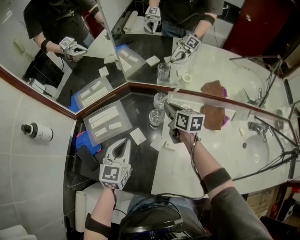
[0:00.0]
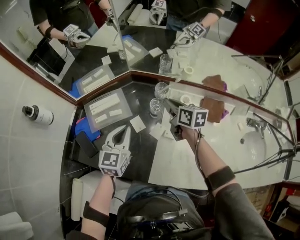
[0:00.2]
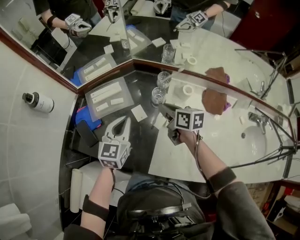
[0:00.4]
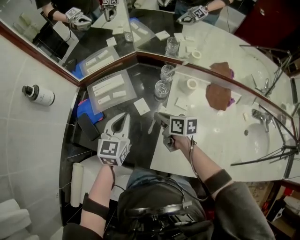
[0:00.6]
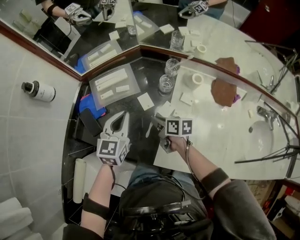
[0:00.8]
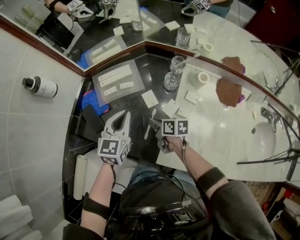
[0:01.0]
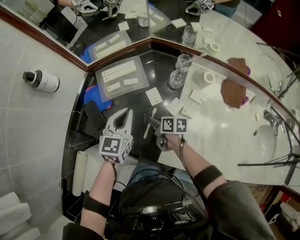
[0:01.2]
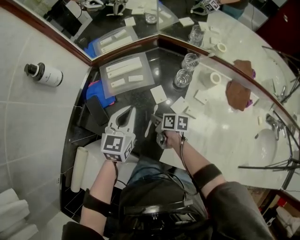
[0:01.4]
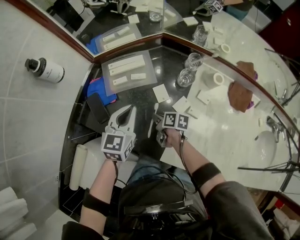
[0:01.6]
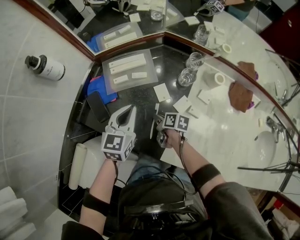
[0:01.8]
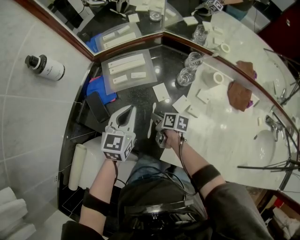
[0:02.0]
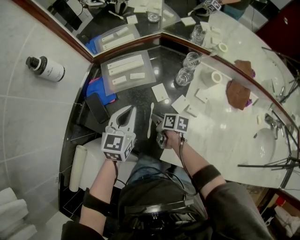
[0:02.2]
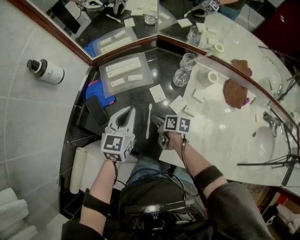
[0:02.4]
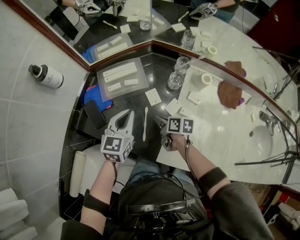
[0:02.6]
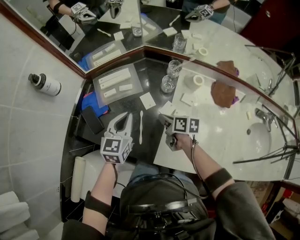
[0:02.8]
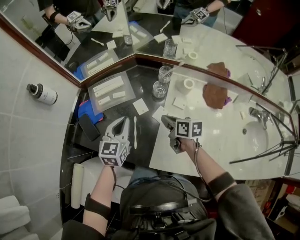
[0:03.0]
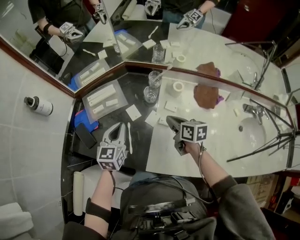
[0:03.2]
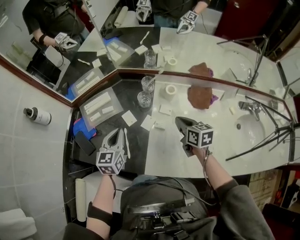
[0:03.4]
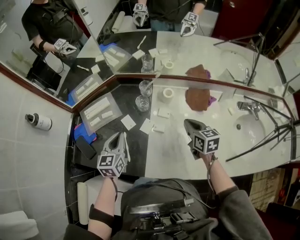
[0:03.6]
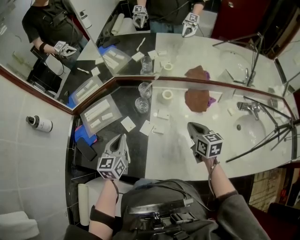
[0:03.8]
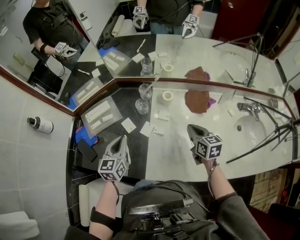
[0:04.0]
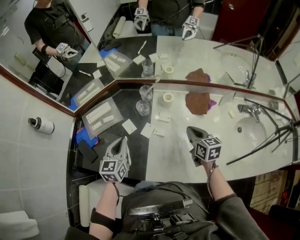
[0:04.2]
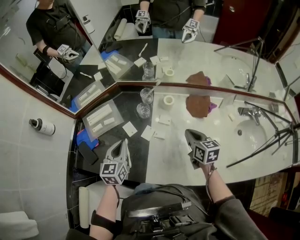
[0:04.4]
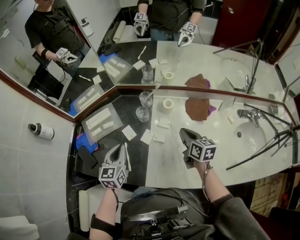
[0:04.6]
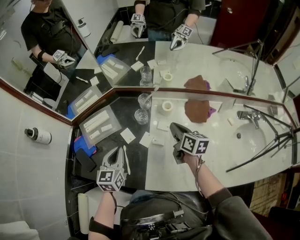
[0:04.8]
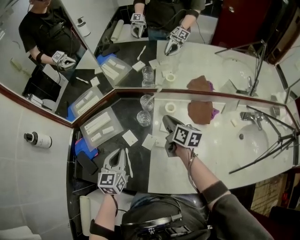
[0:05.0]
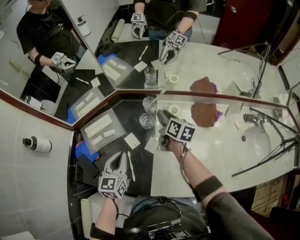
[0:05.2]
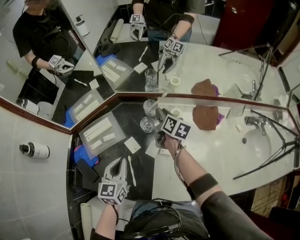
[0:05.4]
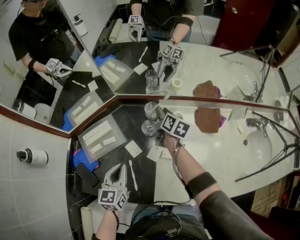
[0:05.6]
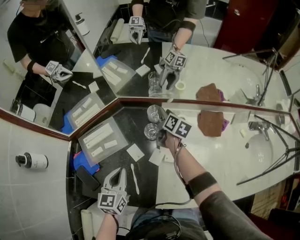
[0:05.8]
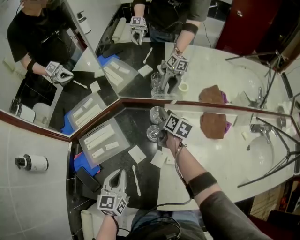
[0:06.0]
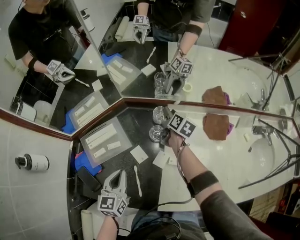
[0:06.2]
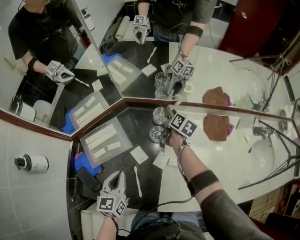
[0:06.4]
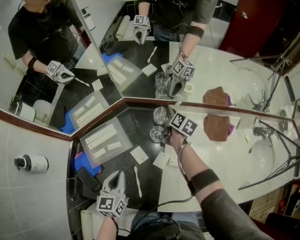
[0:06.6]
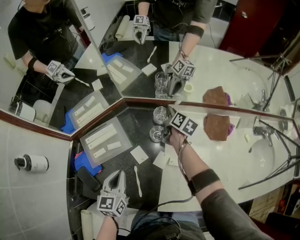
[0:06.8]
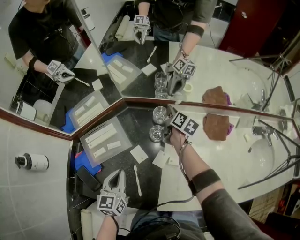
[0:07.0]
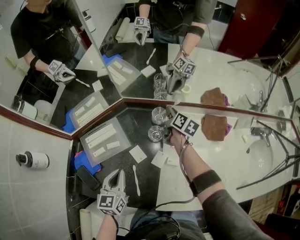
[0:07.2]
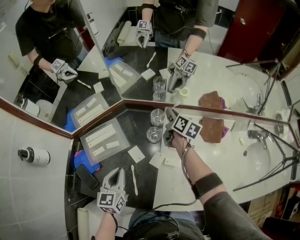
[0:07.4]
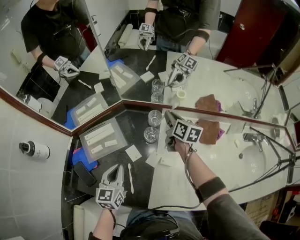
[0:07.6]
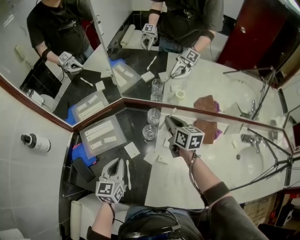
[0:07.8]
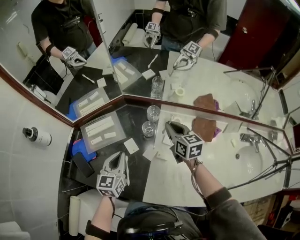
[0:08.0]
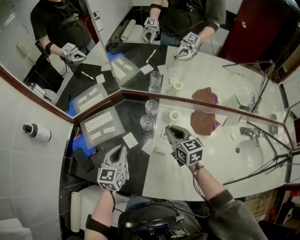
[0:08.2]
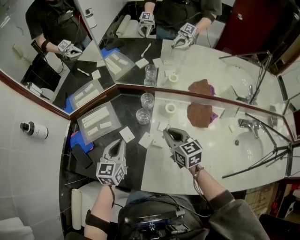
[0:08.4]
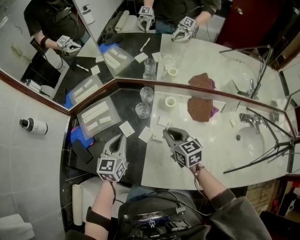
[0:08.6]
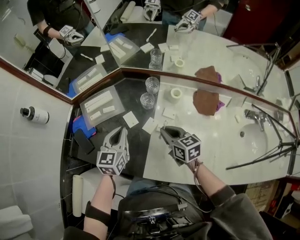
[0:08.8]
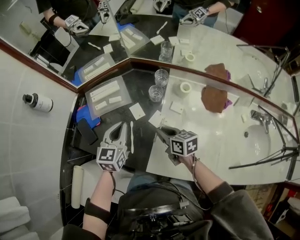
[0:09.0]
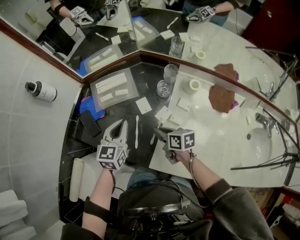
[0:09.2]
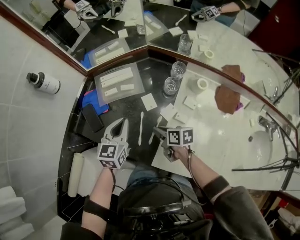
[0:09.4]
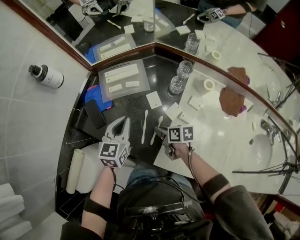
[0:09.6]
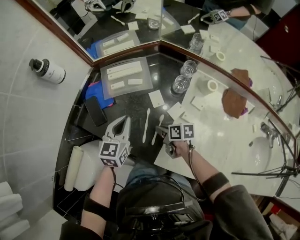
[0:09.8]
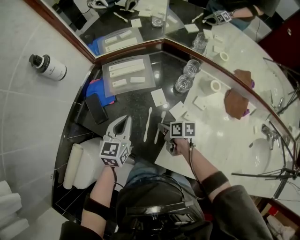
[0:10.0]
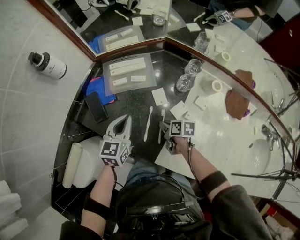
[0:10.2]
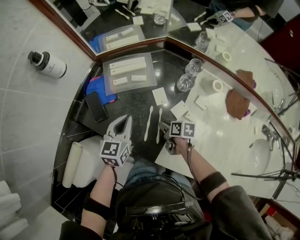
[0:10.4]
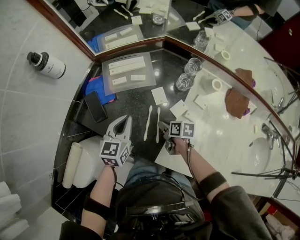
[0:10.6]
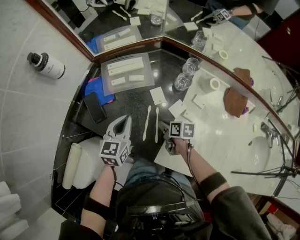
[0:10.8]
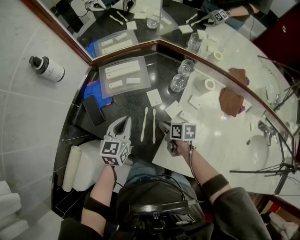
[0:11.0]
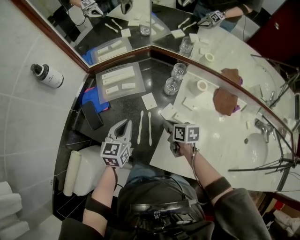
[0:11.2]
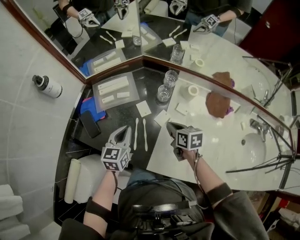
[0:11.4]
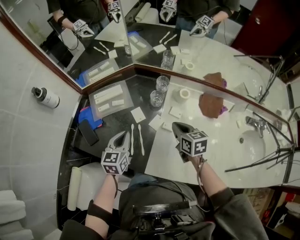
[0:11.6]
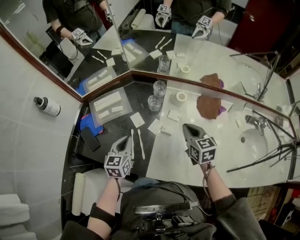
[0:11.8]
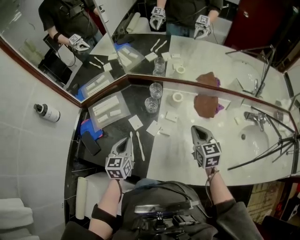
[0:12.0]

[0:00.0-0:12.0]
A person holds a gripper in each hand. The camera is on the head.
0:00.0 to 0:01.6: The left gripper goes about 10 cm to the left. Meanwhile the right gripper goes about 35 cm to the left, downward and backward, and turns by some 40 degrees.
0:01.6 to 0:03.0: The left gripper moves to the right, approximately 5 cm. The right gripper shifts some 20 cm to the right and upward, swivels about 20 degrees, and opens, then closes once more.
0:03.0 to 0:04.4: The left gripper shifts approximately 5 cm to the right. The right gripper shifts roughly 20 cm to the right, and turns by roughly 30 degrees.
0:04.4 to 0:06.0: The left gripper shifts some 5 cm to the left; the right gripper heads forward and to the left, covering about 30 cm, turns by roughly 30 degrees, and opens its fingers.
0:06.0 to 0:07.6: The right gripper heads upward, covering about 10 cm, and closes.
0:07.6 to 0:09.0: The right gripper moves backward and to the left, approximately 30 cm, and turns by roughly 30 degrees.
0:09.0 to 0:10.4: The right gripper heads downward and to the left, covering roughly 15 cm, and turns by approximately 30 degrees, while the left gripper moves to the left and downward, about 10 cm.
0:10.4 to 0:12.0: The right gripper ends up approximately 35 cm from where it was, rotates roughly 60 degrees, and closes, while the left gripper shifts by about 10 cm.

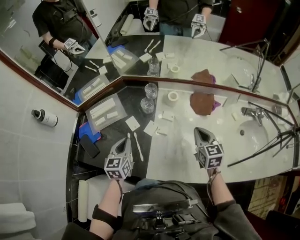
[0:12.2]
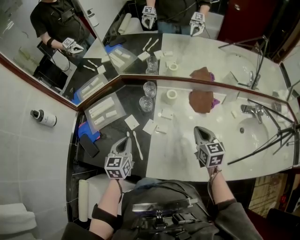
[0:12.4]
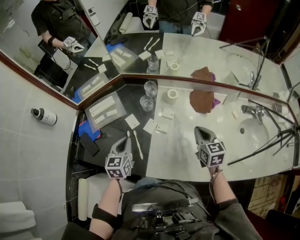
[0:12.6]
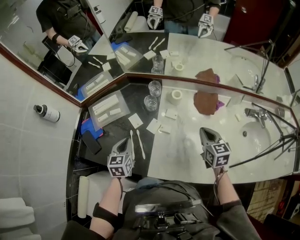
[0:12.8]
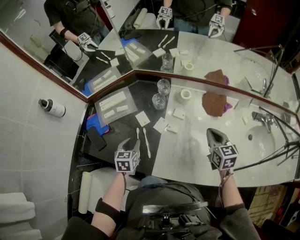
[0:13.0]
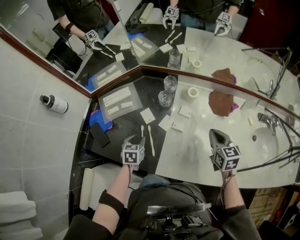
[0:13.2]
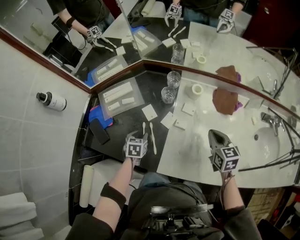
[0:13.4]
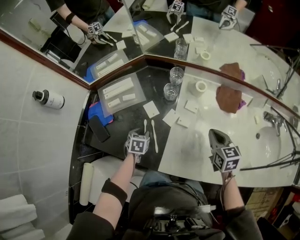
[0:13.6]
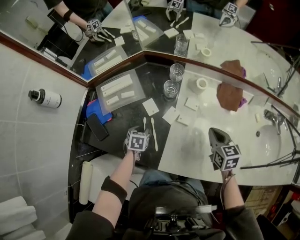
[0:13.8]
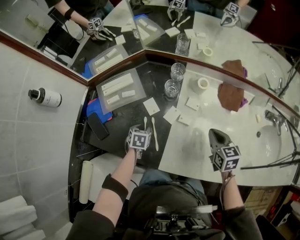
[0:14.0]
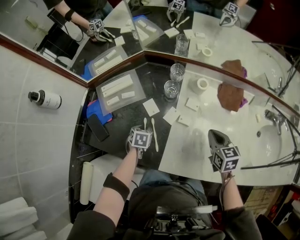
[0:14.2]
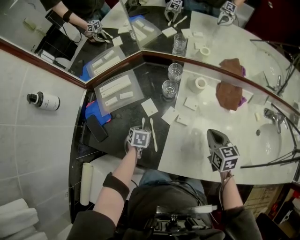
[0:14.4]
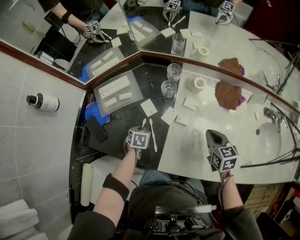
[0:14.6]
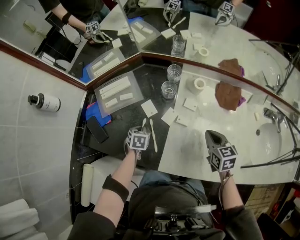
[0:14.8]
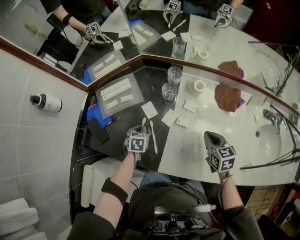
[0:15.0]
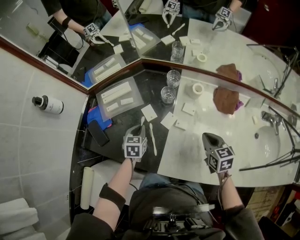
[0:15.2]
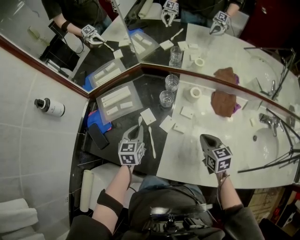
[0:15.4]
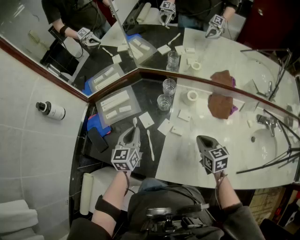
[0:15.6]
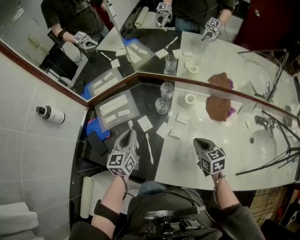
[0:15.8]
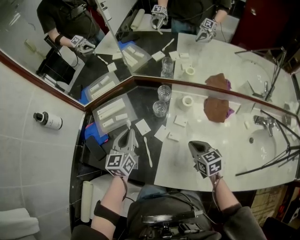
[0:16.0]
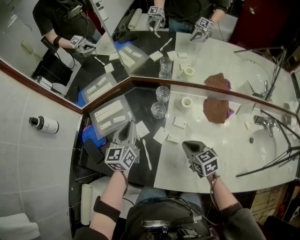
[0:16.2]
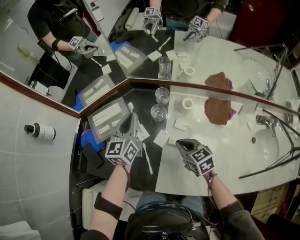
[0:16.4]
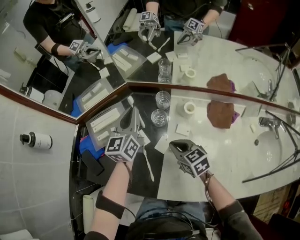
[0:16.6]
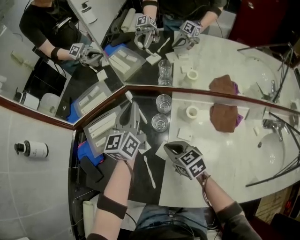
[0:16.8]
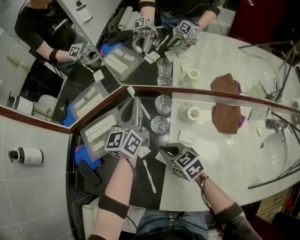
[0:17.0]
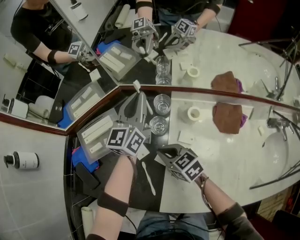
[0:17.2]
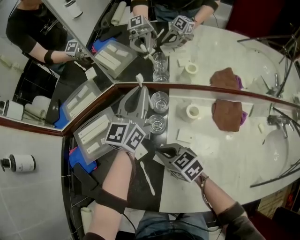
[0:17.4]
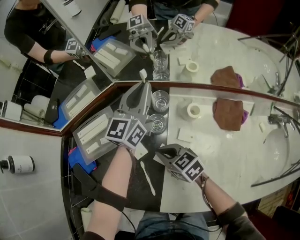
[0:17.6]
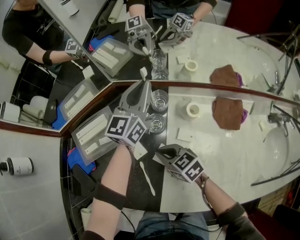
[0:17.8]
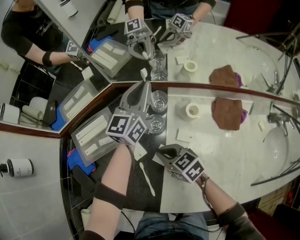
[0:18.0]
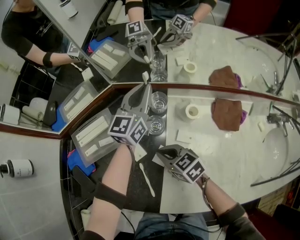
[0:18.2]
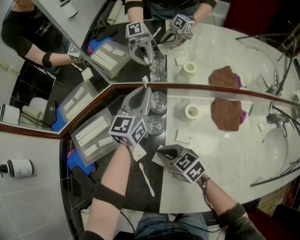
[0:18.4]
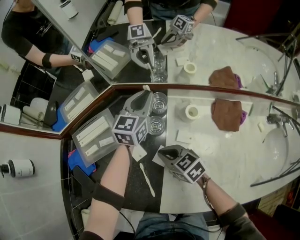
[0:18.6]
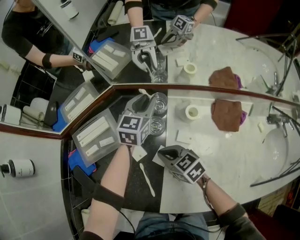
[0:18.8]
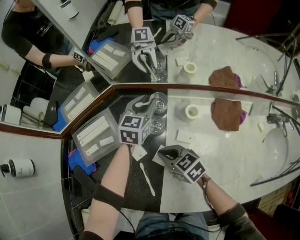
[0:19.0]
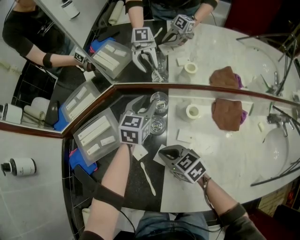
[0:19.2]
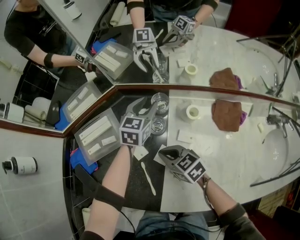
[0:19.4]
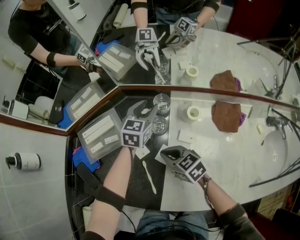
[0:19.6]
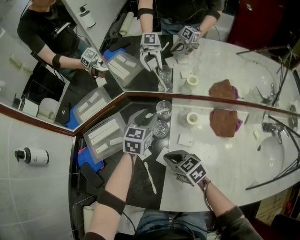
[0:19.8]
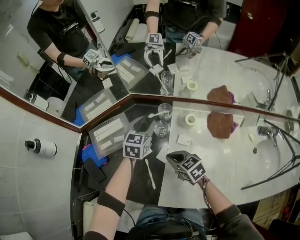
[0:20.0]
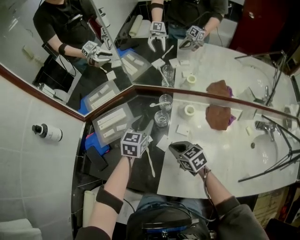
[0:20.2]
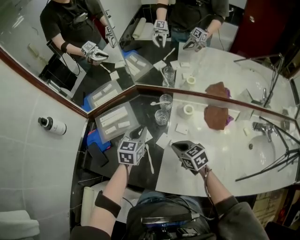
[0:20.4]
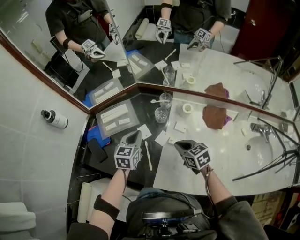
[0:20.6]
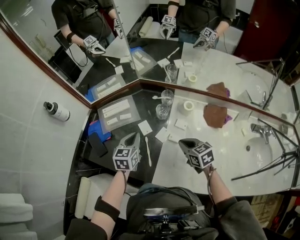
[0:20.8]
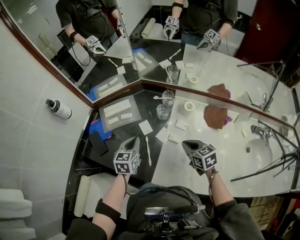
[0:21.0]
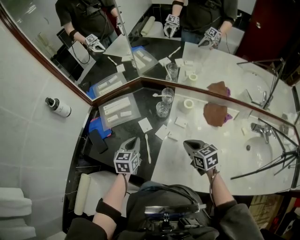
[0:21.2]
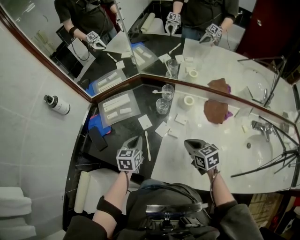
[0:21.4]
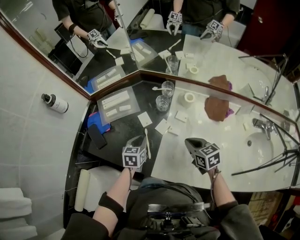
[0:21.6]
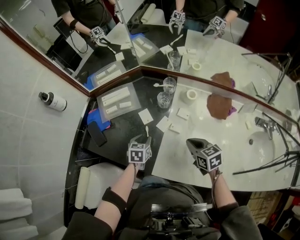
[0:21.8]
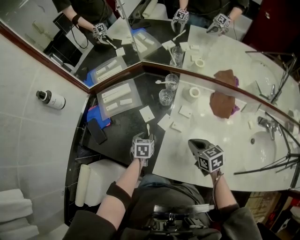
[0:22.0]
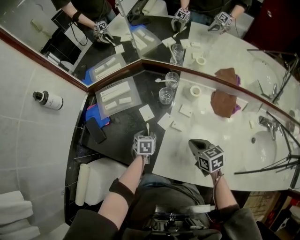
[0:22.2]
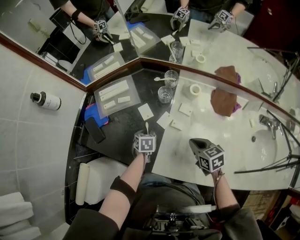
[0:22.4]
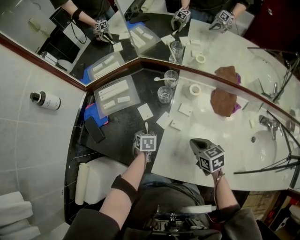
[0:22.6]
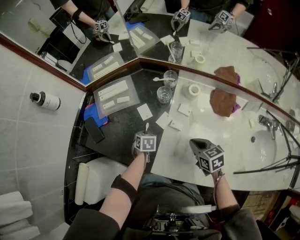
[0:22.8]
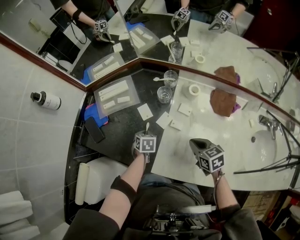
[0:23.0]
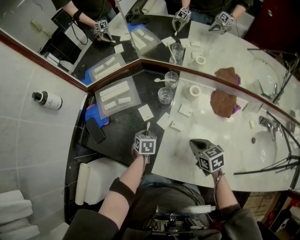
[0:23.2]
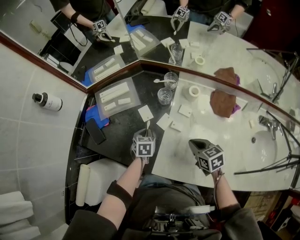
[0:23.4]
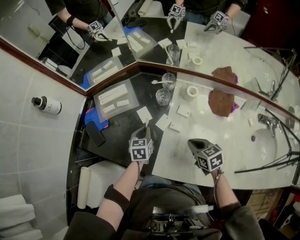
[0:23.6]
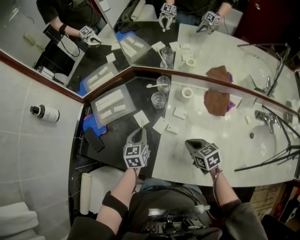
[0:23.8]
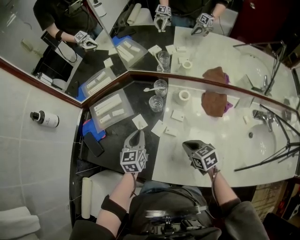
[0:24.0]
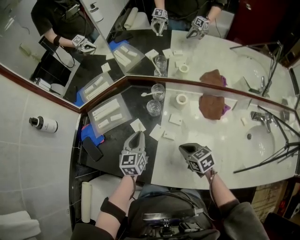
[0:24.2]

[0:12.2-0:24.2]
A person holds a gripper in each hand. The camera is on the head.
0:12.2 to 0:13.8: The right gripper moves downward, roughly 5 cm. The left gripper moves downward, approximately 20 cm, points its fingers approximately 40 degrees further downward, and opens up.
0:13.8 to 0:15.2: The left gripper goes some 5 cm upward, and closes.
0:15.2 to 0:16.6: The right gripper travels to the left and forward by about 15 cm, while the left gripper is displaced upward, forward and to the right by approximately 25 cm, and tilts its fingers some 40 degrees upward.
0:16.6 to 0:18.2: The right gripper goes some 5 cm downward. Meanwhile the left gripper is displaced to the right and forward by about 15 cm.
0:18.2 to 0:19.8: The left gripper shifts about 10 cm downward and backward, rotates about 30 degrees, and opens up.
0:19.8 to 0:21.2: The right gripper goes roughly 15 cm backward, to the right and upward, while the left gripper is displaced backward and to the left by approximately 30 cm, rotates some 20 degrees, and closes up.
0:21.2 to 0:22.6: The right gripper shifts by approximately 5 cm, while the left gripper moves downward, roughly 20 cm, points its fingers about 30 degrees further downward, and opens its fingers.
0:22.6 to 0:24.2: The left gripper moves upward, approximately 20 cm, and angles its fingers upward, by roughly 40 degrees.
